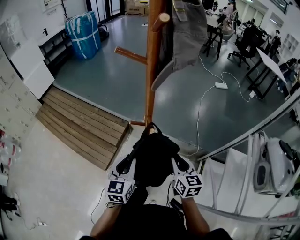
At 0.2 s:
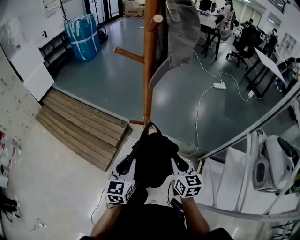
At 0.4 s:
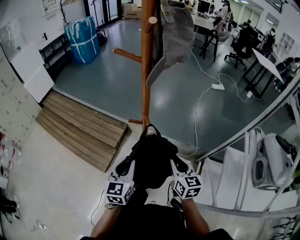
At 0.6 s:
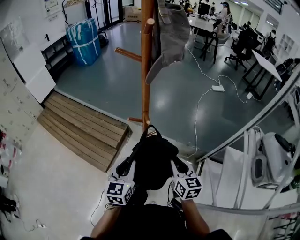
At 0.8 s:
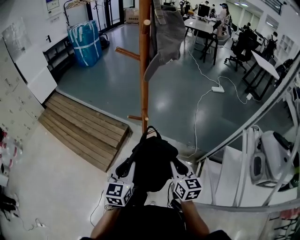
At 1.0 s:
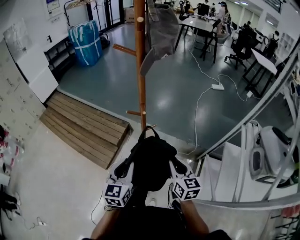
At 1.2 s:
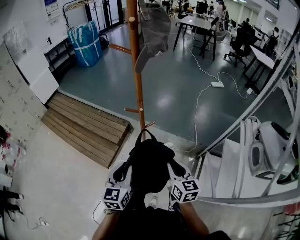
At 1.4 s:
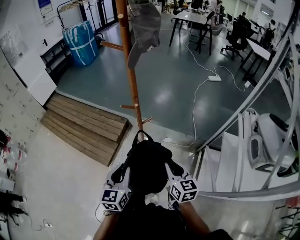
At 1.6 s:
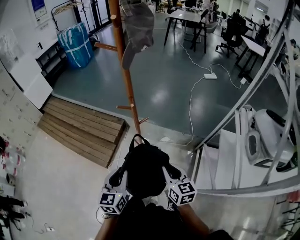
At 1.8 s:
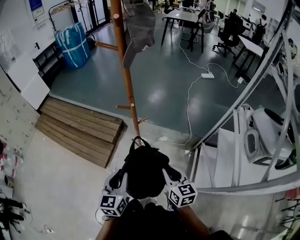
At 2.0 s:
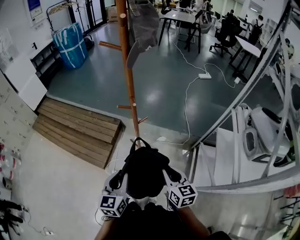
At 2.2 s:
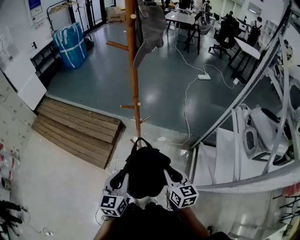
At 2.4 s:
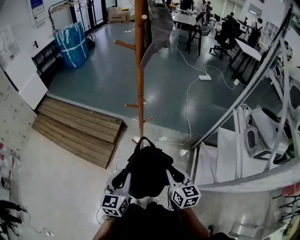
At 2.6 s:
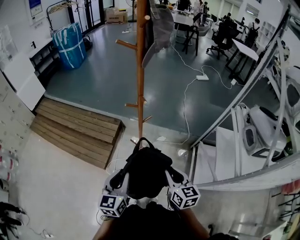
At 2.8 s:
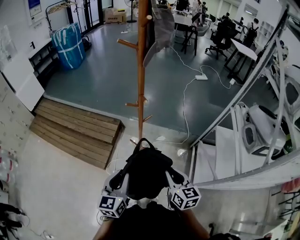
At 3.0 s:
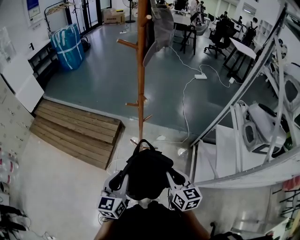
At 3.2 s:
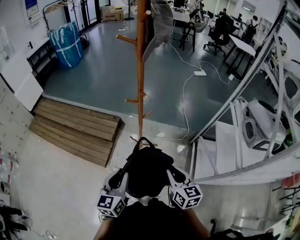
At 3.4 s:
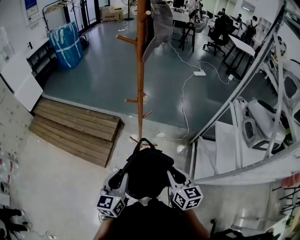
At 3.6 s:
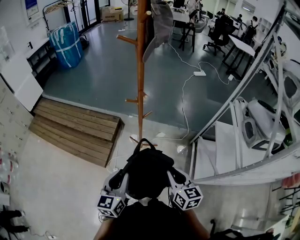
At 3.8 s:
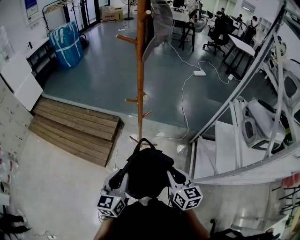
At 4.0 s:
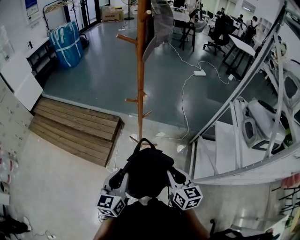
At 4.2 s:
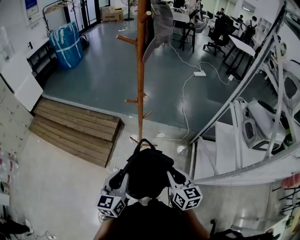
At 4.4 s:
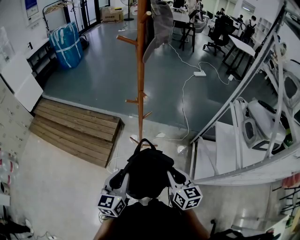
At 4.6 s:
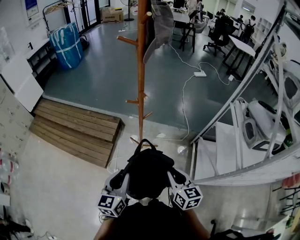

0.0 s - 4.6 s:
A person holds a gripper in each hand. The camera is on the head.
0.0 s - 1.6 s: Both grippers move backward, some 20 cm.
1.6 s - 3.0 s: The right gripper shifts approximately 10 cm backward and to the left, while the left gripper is displaced to the left by approximately 10 cm.
3.0 s - 4.6 s: Both grippers stay put.

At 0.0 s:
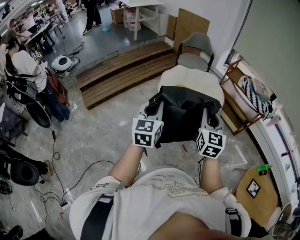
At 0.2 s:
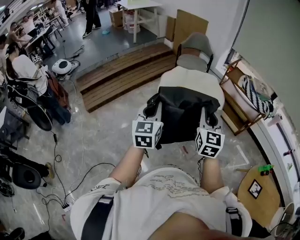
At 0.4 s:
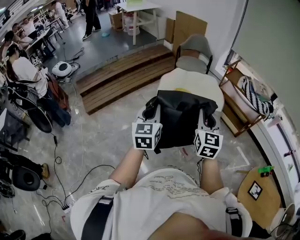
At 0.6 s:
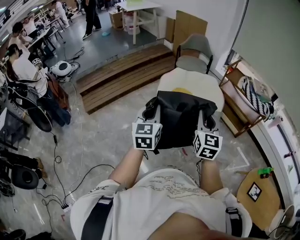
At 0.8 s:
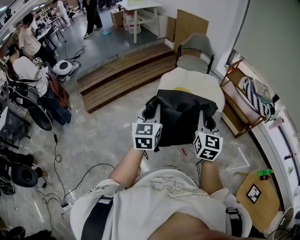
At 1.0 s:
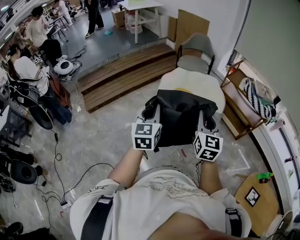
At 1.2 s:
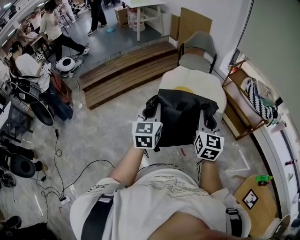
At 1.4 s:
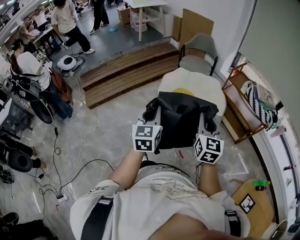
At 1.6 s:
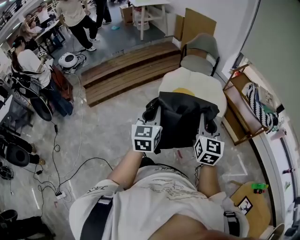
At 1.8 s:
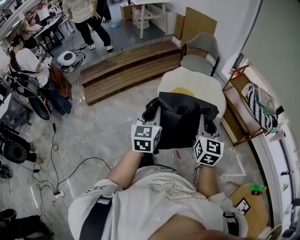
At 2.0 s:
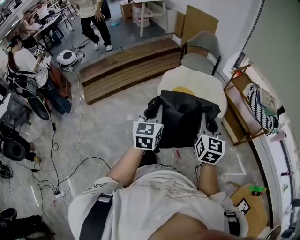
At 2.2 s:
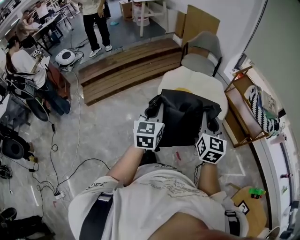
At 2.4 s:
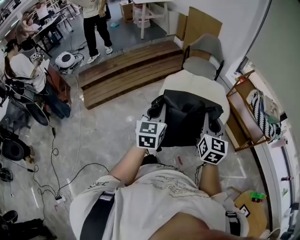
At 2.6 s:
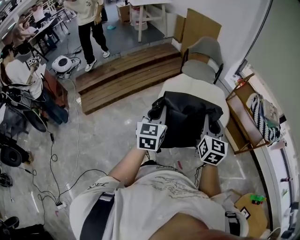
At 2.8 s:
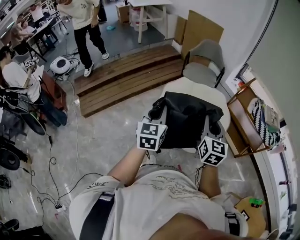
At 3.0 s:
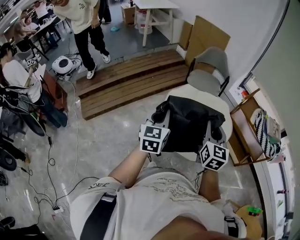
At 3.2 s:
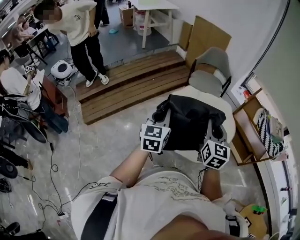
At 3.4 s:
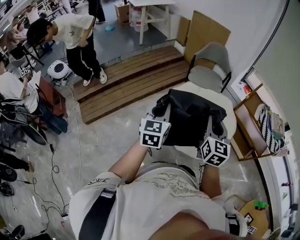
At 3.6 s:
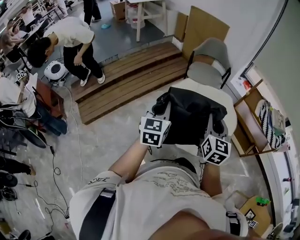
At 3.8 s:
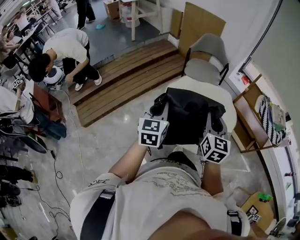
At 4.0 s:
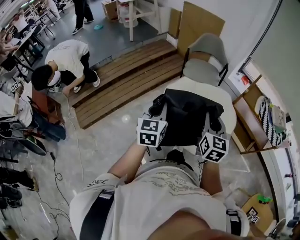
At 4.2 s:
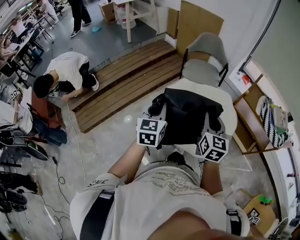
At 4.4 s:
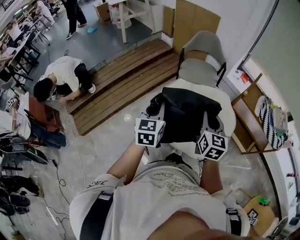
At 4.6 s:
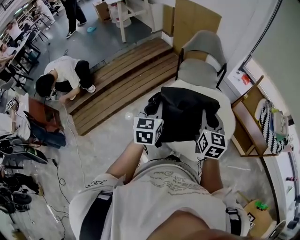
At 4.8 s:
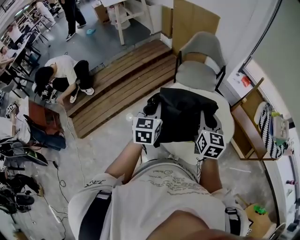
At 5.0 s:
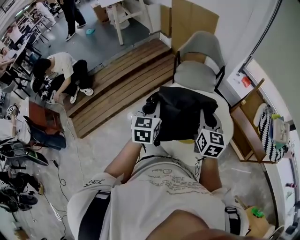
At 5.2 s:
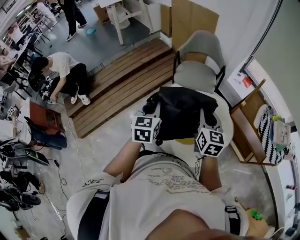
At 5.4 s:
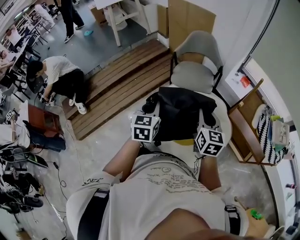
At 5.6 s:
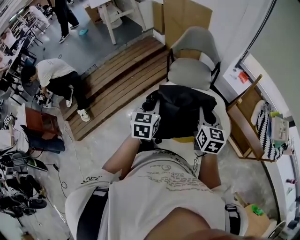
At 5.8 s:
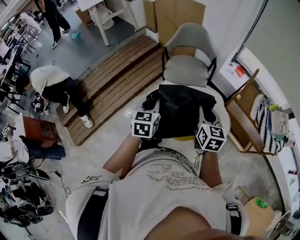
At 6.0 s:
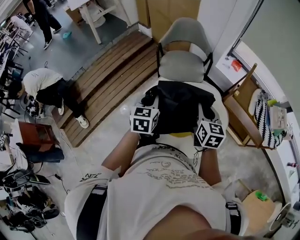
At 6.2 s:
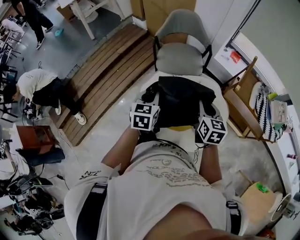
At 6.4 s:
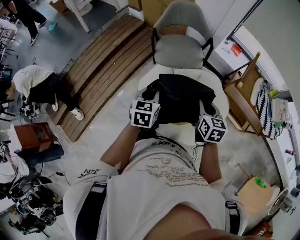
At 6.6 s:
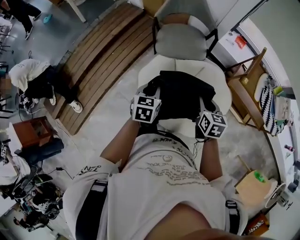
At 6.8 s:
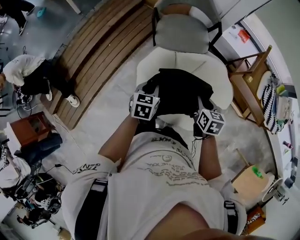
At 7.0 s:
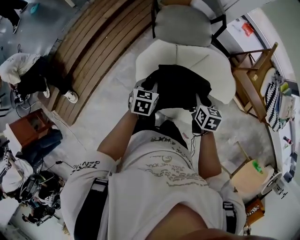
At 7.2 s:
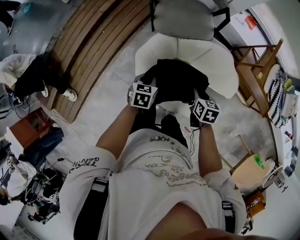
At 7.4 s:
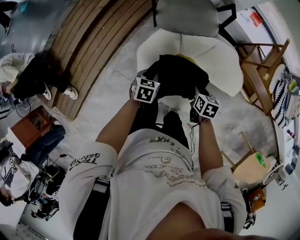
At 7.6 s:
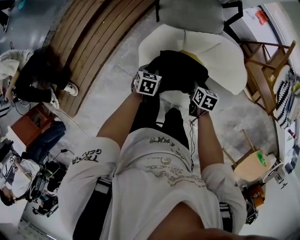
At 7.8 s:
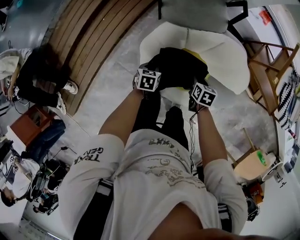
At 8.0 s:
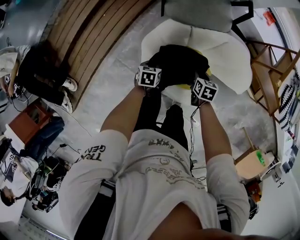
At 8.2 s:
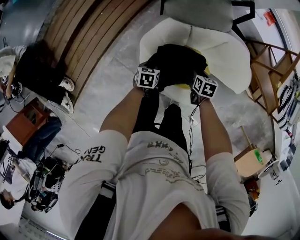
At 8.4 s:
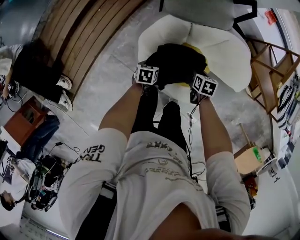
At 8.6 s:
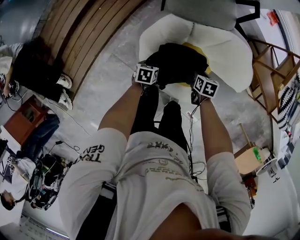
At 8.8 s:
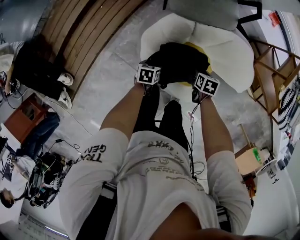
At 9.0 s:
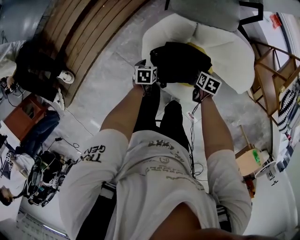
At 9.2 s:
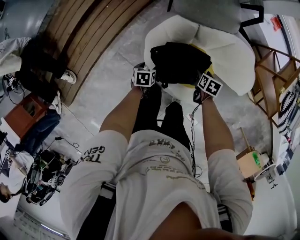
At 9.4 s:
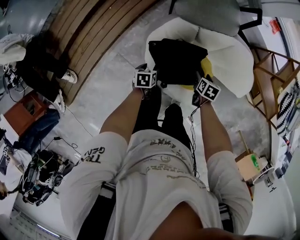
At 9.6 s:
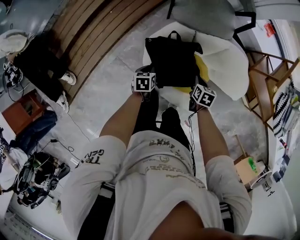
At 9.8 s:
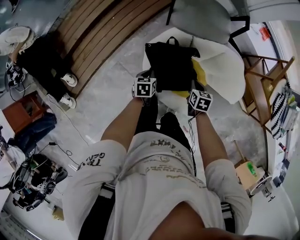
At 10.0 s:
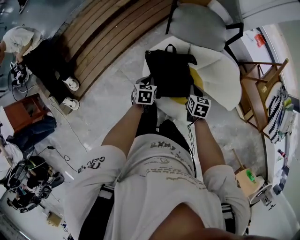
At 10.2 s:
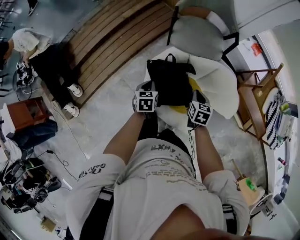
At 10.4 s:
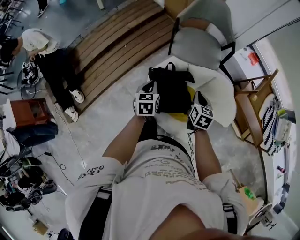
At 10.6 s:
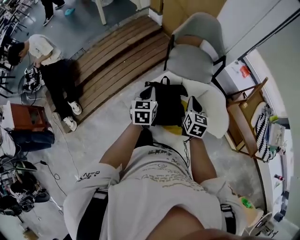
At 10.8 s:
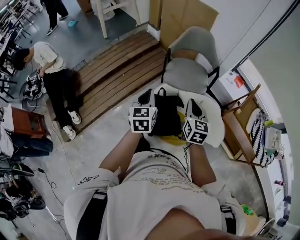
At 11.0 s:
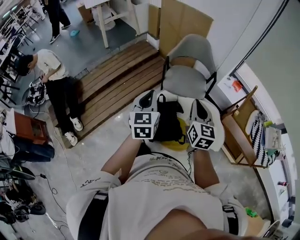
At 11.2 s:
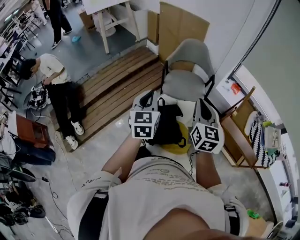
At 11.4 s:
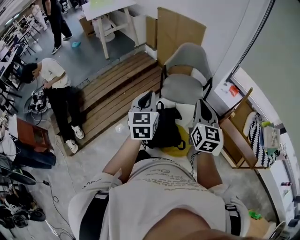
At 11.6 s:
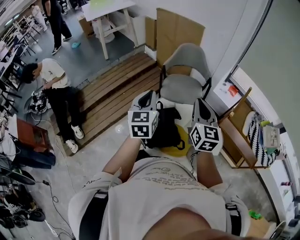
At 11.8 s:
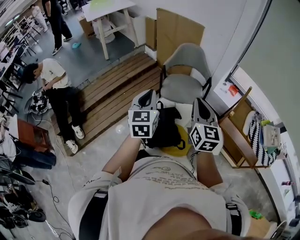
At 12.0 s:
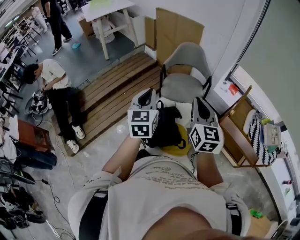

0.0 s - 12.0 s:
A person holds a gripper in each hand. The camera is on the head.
0.0 s - 1.6 s: Both grippers move to the right and forward, approximately 10 cm.
1.6 s - 3.0 s: The grippers both shift forward and to the left by some 25 cm.
3.0 s - 4.4 s: The grippers both shift forward by about 20 cm.
4.4 s - 6.0 s: The right gripper goes some 20 cm forward, to the right and downward. The left gripper shifts some 25 cm forward and to the right.
6.0 s - 7.6 s: The two grippers go approximately 35 cm downward. The right gripper angles its fingers downward, by roughly 40 degrees; the left gripper changes its angle by about 30 degrees.
7.6 s - 9.0 s: The left gripper is displaced downward and to the left by roughly 15 cm, swivels about 20 degrees, and opens; the right gripper goes some 10 cm downward.
9.0 s - 10.4 s: The two grippers go about 30 cm upward. The right gripper tilts its fingers approximately 30 degrees upward, and closes up; the left gripper changes its angle by roughly 30 degrees, and closes.
10.4 s - 12.0 s: The two grippers go some 30 cm upward. The right gripper points its fingers some 40 degrees further upward. The left gripper turns by some 30 degrees.

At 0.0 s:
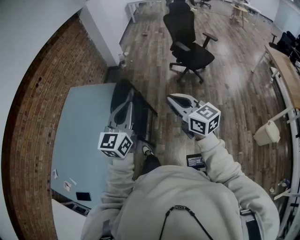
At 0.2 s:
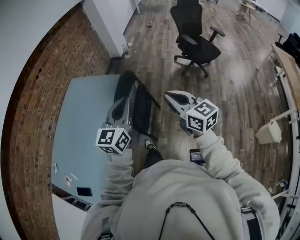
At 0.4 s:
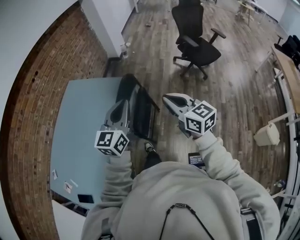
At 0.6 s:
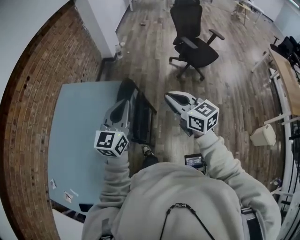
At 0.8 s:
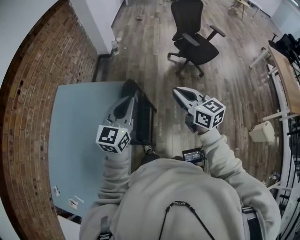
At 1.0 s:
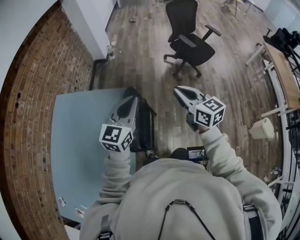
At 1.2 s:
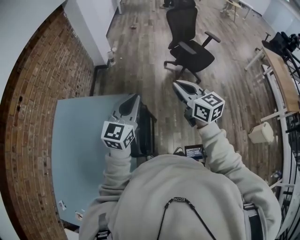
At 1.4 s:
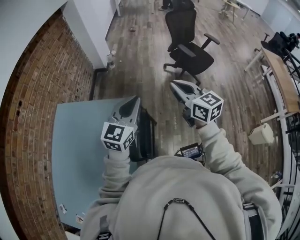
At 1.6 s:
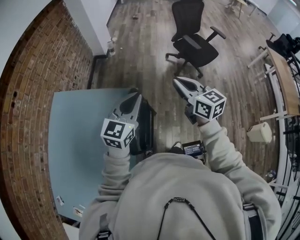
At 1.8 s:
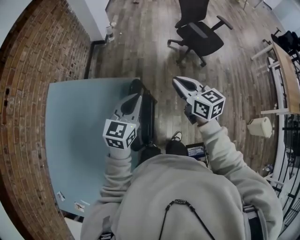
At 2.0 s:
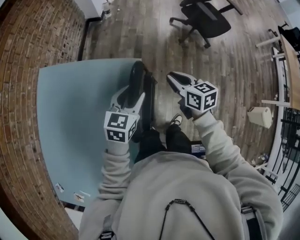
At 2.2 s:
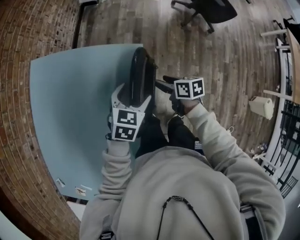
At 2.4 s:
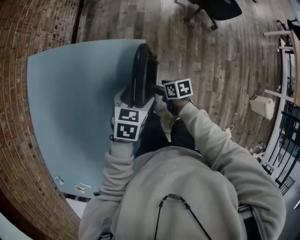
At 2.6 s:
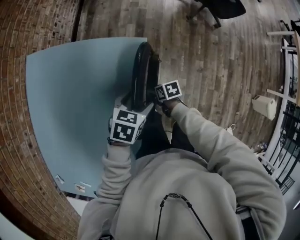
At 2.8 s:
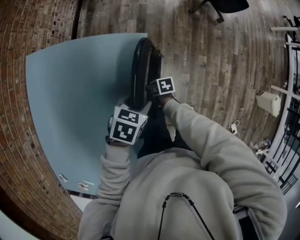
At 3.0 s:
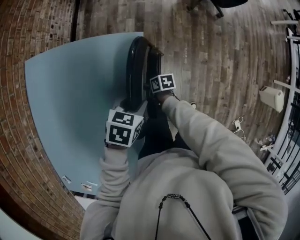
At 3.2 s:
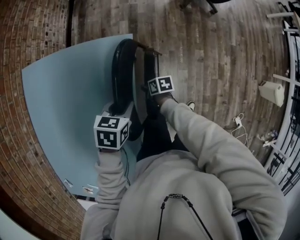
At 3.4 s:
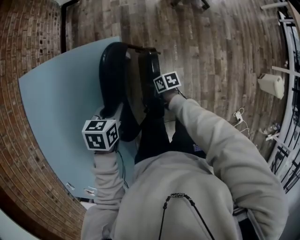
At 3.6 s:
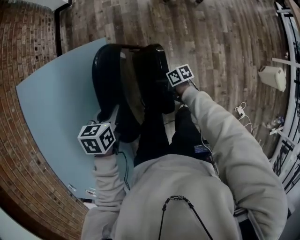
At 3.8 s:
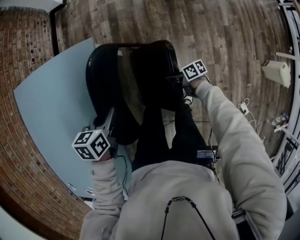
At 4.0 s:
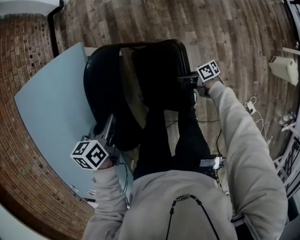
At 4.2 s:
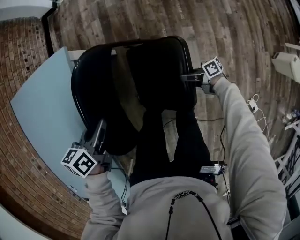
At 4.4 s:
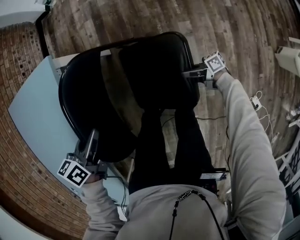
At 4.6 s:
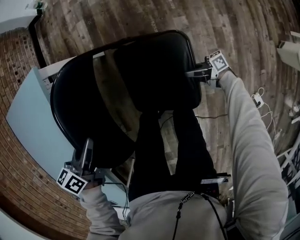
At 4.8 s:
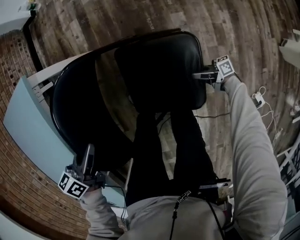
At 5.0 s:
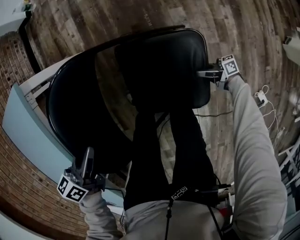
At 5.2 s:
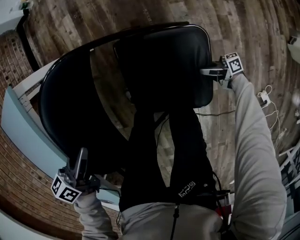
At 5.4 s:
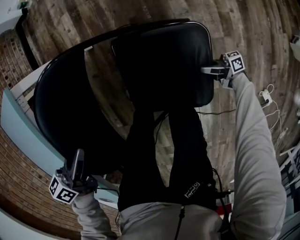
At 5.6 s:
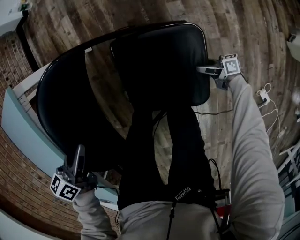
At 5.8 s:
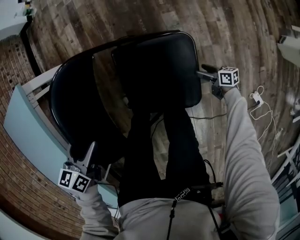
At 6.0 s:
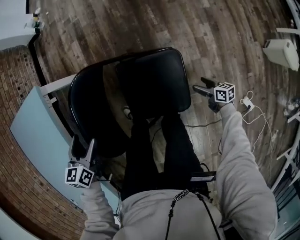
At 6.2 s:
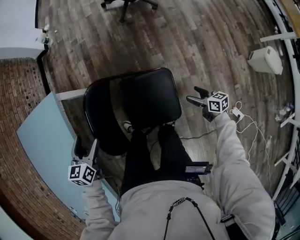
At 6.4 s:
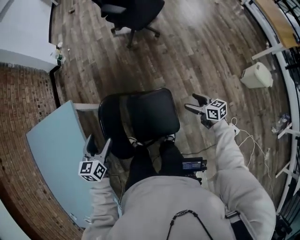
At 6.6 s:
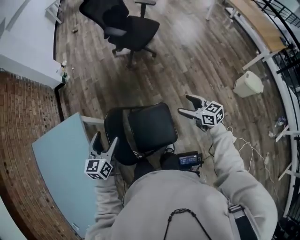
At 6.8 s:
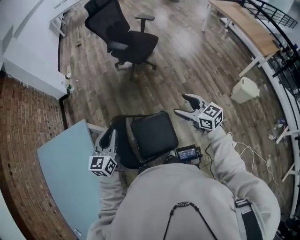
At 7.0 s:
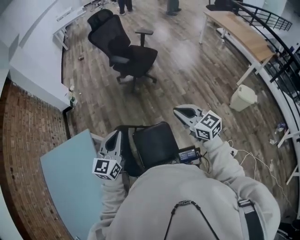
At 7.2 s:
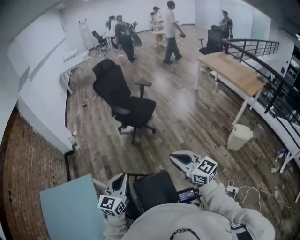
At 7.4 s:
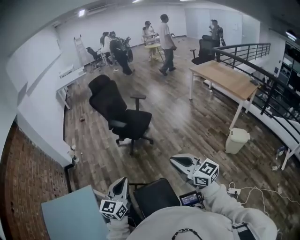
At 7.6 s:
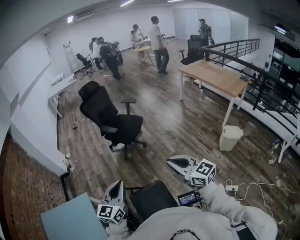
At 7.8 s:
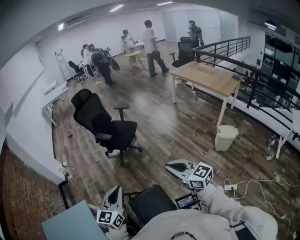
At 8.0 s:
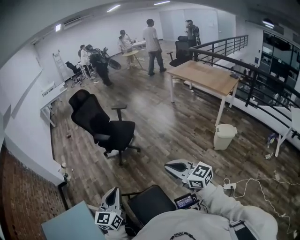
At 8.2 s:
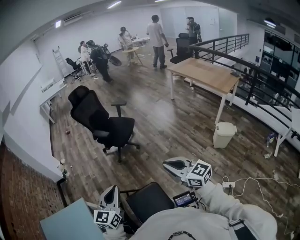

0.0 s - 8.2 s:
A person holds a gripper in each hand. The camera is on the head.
0.0 s - 1.6 s: Both grippers move forward, roughly 35 cm.
1.6 s - 3.2 s: The right gripper shifts approximately 60 cm downward, tips its fingers downward by some 40 degrees, and opens, while the left gripper travels downward by approximately 35 cm, tips its fingers downward by some 50 degrees, and opens, then closes once more.
3.2 s - 5.0 s: The left gripper shifts by approximately 30 cm, and turns by some 20 degrees. The right gripper changes place by approximately 60 cm, and tilts its fingers about 50 degrees upward.
5.0 s - 6.6 s: The right gripper heads upward, covering roughly 60 cm, rotates some 70 degrees, and opens its fingers. Meanwhile the left gripper goes approximately 30 cm upward, changes its angle by approximately 40 degrees, and opens.
6.6 s - 8.2 s: The left gripper heads upward and to the right, covering approximately 25 cm, changes its angle by approximately 30 degrees, and closes up, while the right gripper goes roughly 30 cm upward, changes its angle by roughly 30 degrees, and closes.
